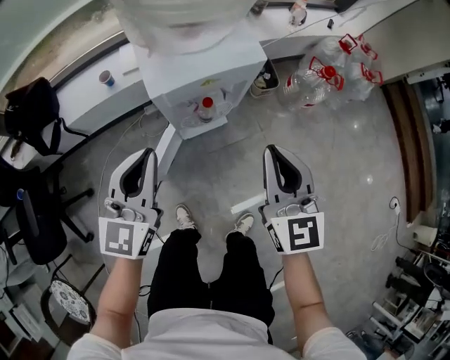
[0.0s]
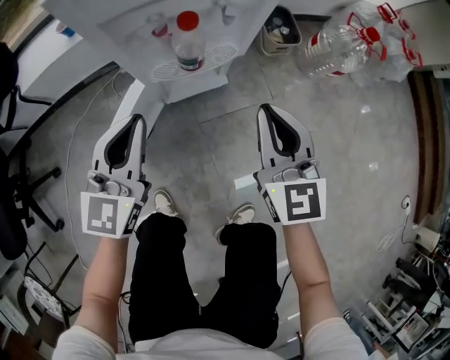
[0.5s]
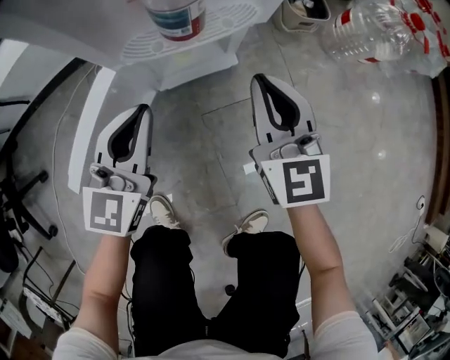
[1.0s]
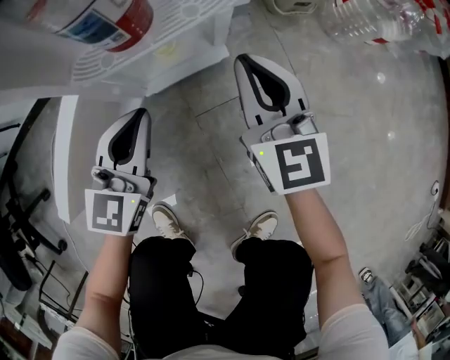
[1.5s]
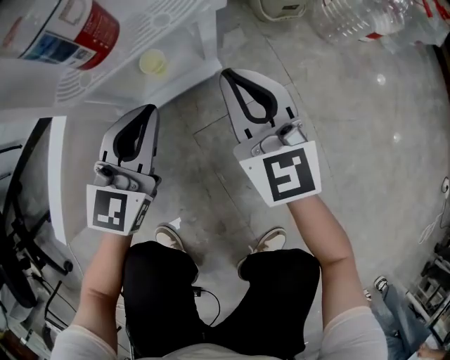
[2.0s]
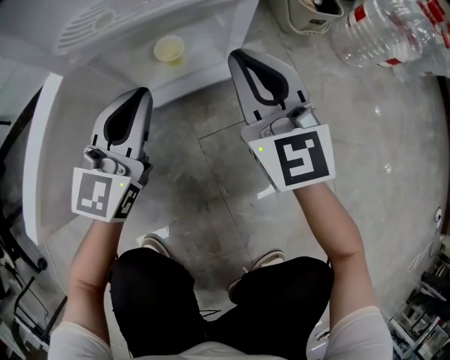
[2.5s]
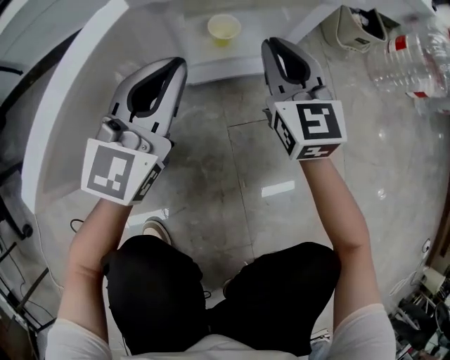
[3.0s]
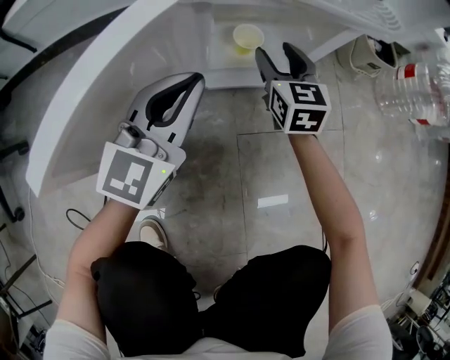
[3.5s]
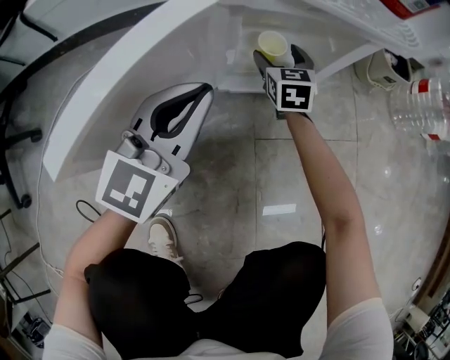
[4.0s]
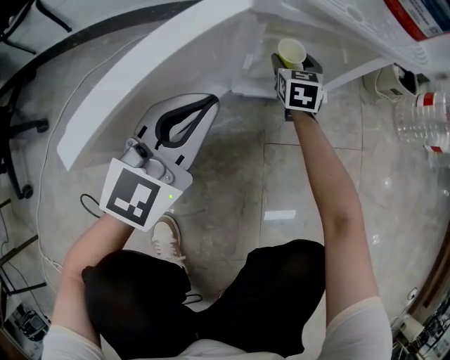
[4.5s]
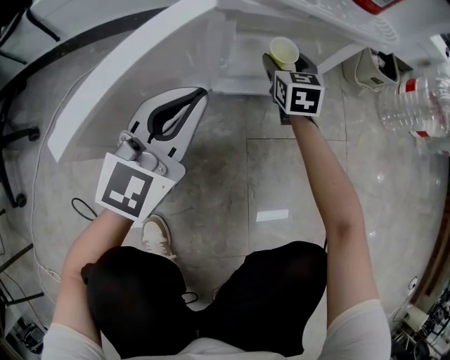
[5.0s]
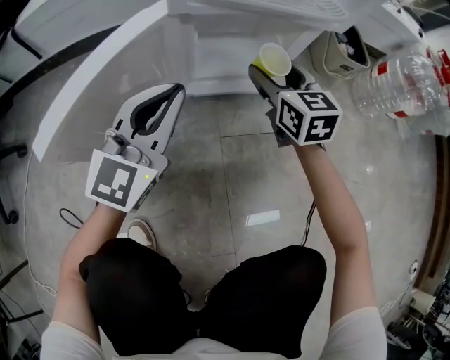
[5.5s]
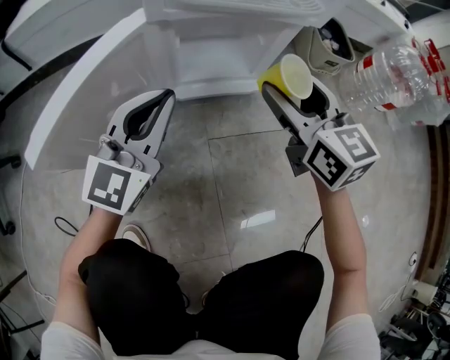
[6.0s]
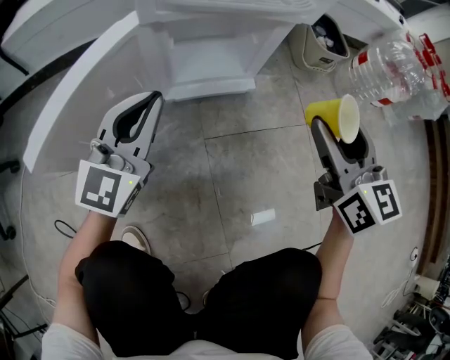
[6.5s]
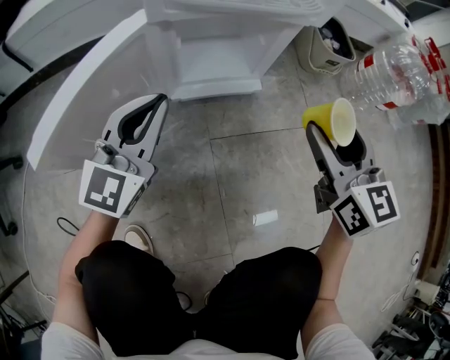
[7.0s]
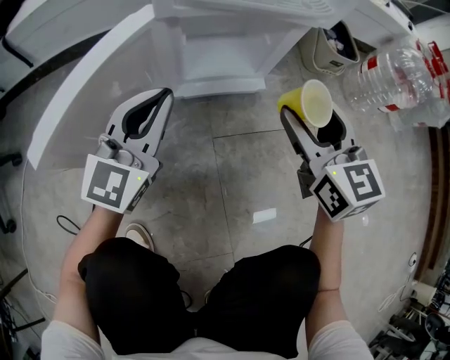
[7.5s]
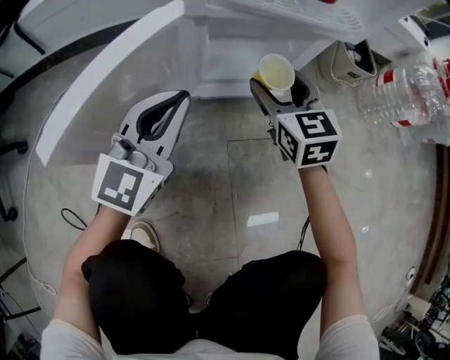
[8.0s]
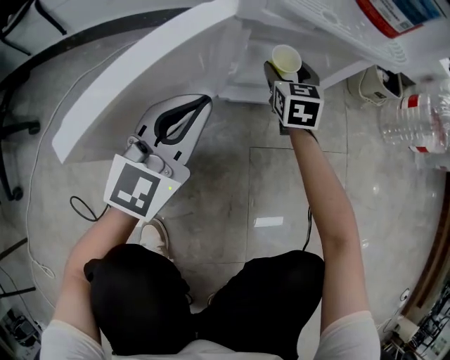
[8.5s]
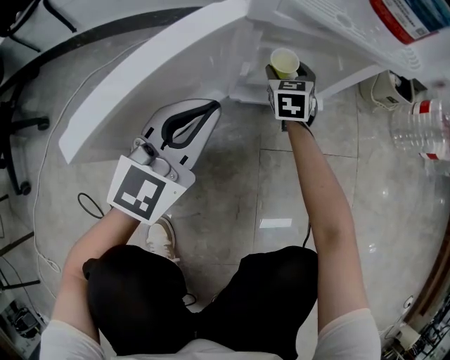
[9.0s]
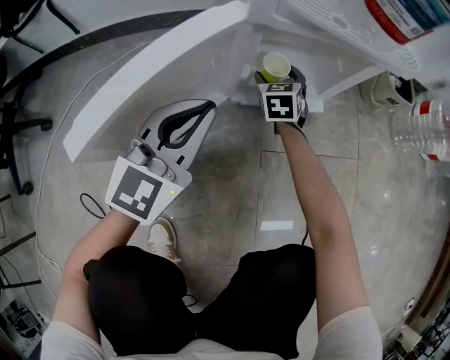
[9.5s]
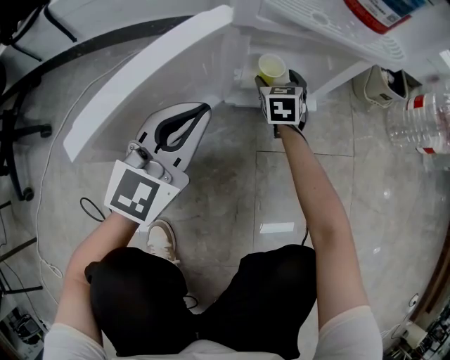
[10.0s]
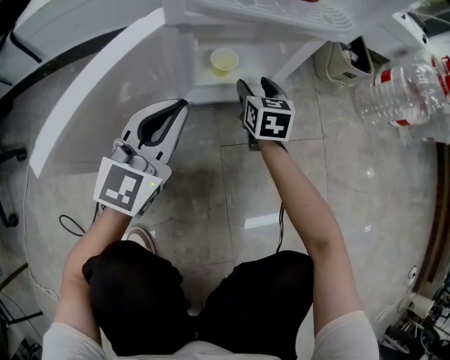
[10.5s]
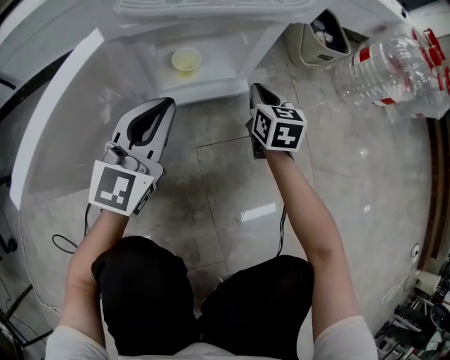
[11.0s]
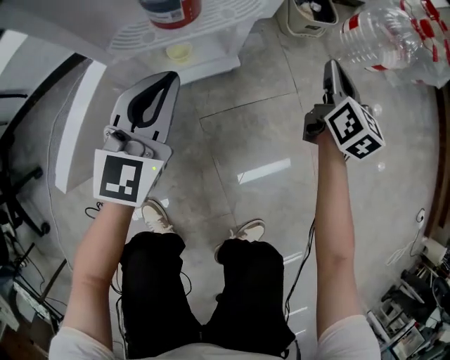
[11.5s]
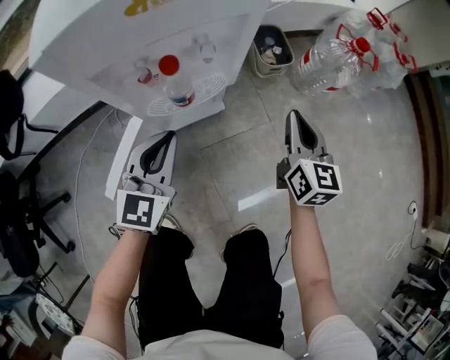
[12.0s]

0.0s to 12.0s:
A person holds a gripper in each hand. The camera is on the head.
0.0s to 2.0s: The two grippers go about 50 cm downward.
2.0s to 4.0s: The right gripper goes some 30 cm downward, to the left and forward, and opens up. The left gripper is displaced to the left by roughly 15 cm.
4.0s to 6.0s: The right gripper heads upward, backward and to the right, covering roughly 30 cm. The left gripper moves roughly 5 cm.
6.0s to 8.0s: The right gripper is displaced downward and to the left by roughly 10 cm.
8.0s to 10.0s: The right gripper heads downward and forward, covering some 20 cm.
10.0s to 12.0s: The left gripper shifts approximately 30 cm upward and to the right. Meanwhile the right gripper heads upward and to the right, covering roughly 50 cm, rotates about 40 degrees, and closes its fingers.

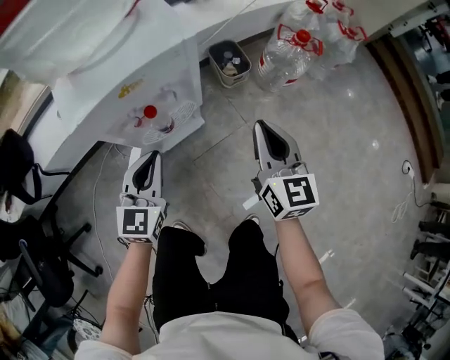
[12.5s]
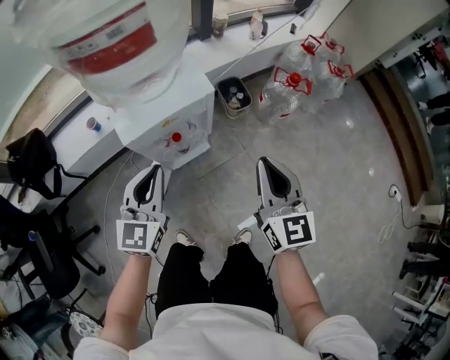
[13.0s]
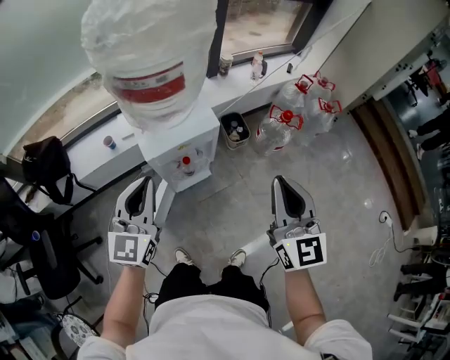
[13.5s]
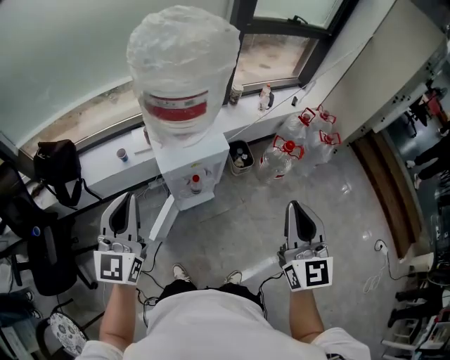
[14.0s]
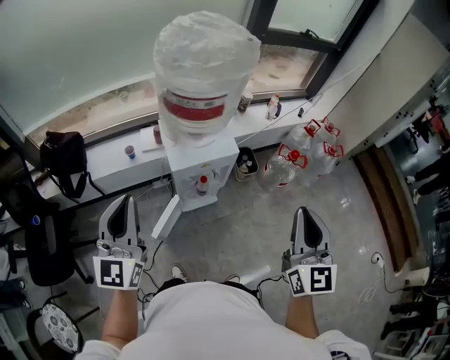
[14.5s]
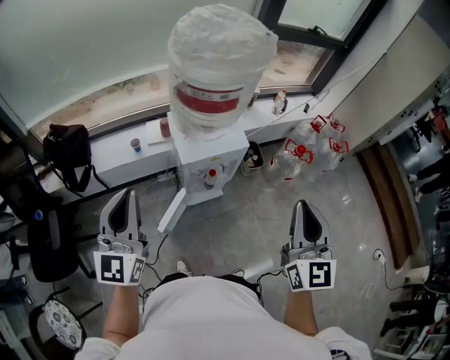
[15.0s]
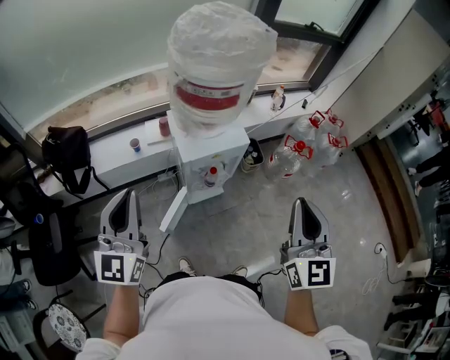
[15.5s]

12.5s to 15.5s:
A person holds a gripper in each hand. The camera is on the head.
12.5s to 14.0s: The two grippers go some 40 cm upward. The left gripper turns by about 20 degrees.
14.0s to 15.5s: The two grippers go approximately 5 cm to the left.

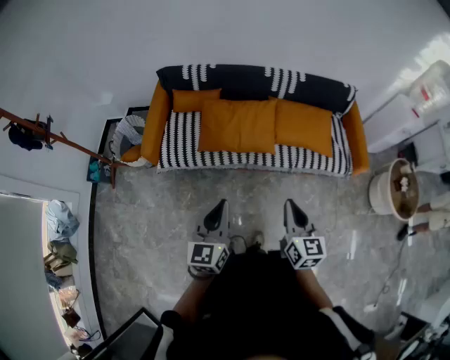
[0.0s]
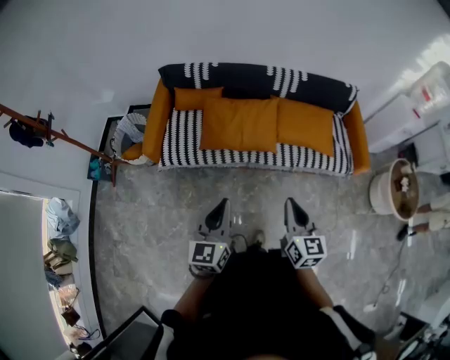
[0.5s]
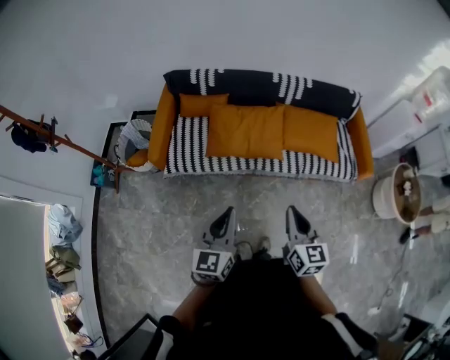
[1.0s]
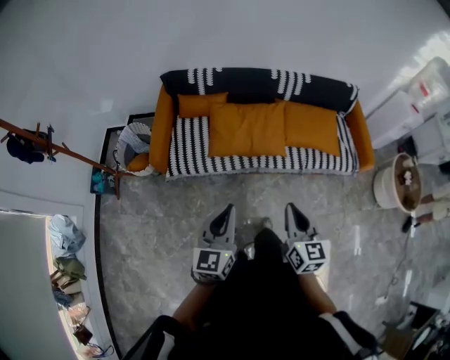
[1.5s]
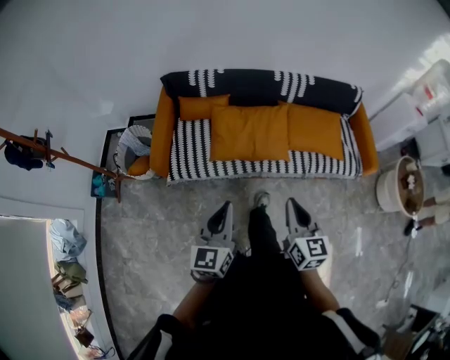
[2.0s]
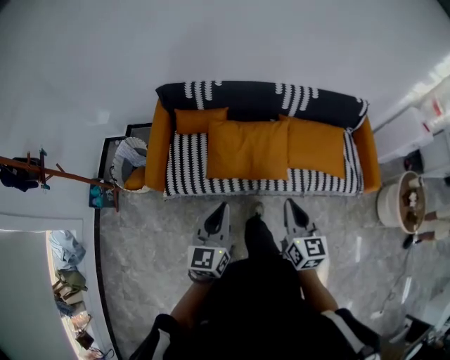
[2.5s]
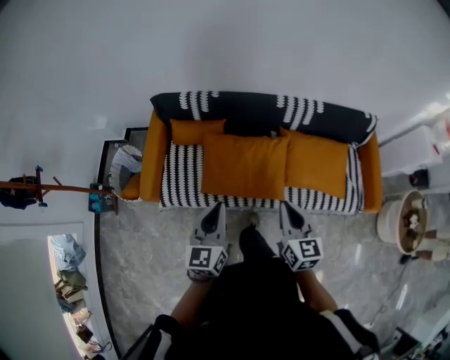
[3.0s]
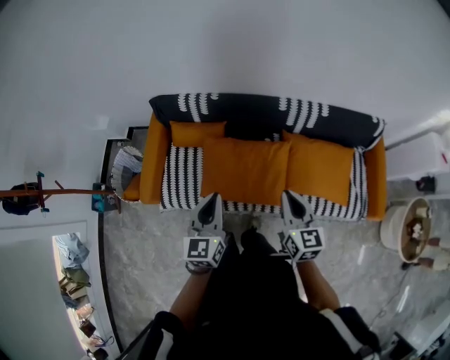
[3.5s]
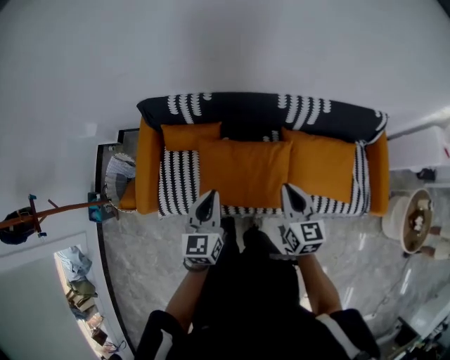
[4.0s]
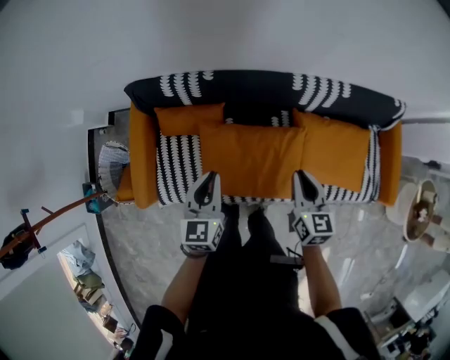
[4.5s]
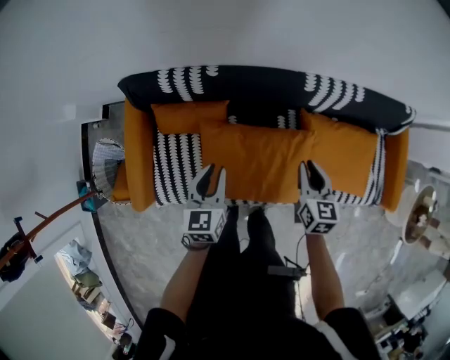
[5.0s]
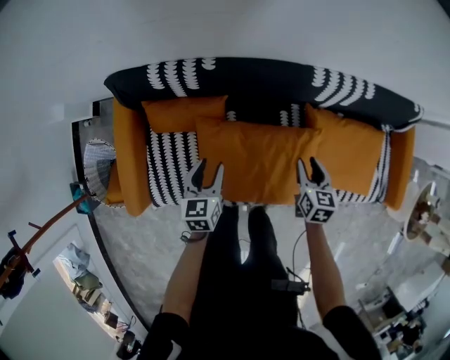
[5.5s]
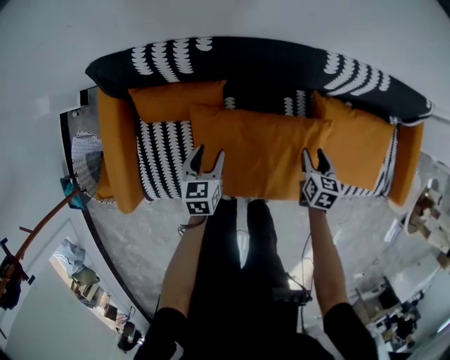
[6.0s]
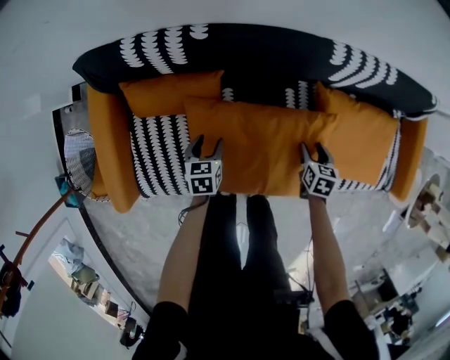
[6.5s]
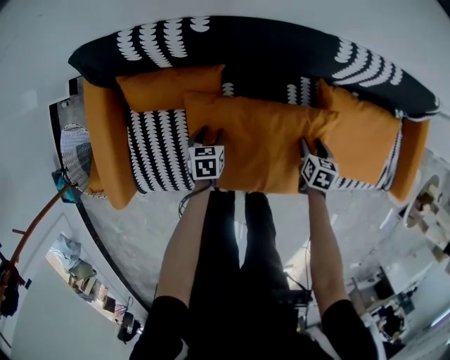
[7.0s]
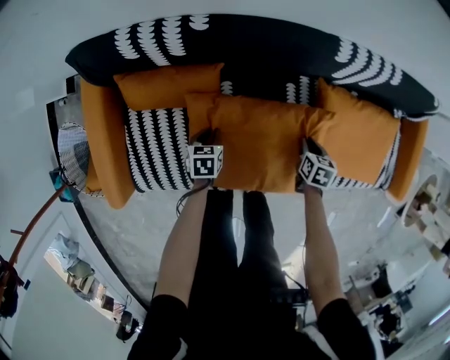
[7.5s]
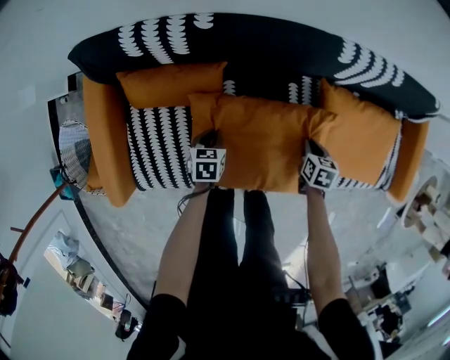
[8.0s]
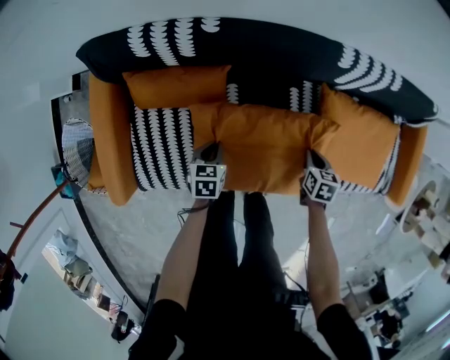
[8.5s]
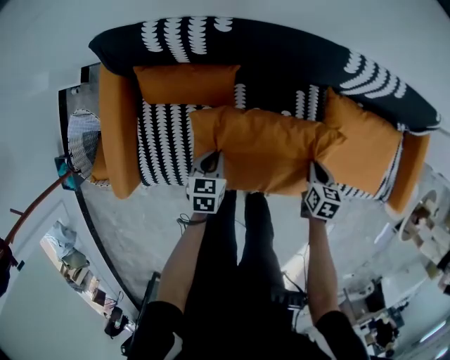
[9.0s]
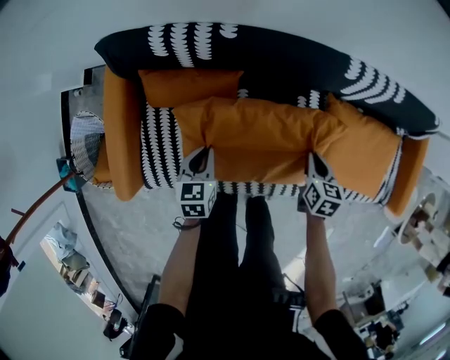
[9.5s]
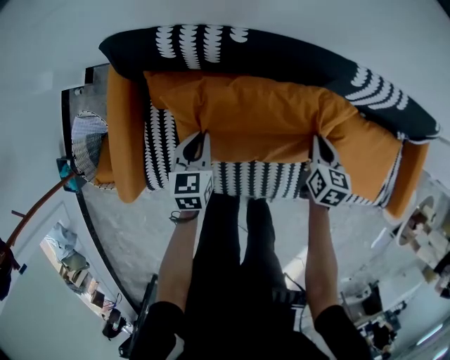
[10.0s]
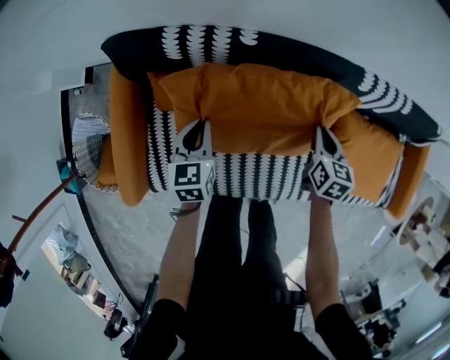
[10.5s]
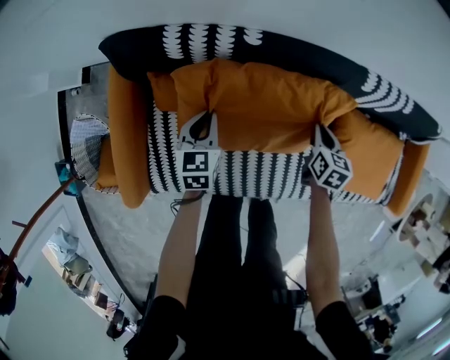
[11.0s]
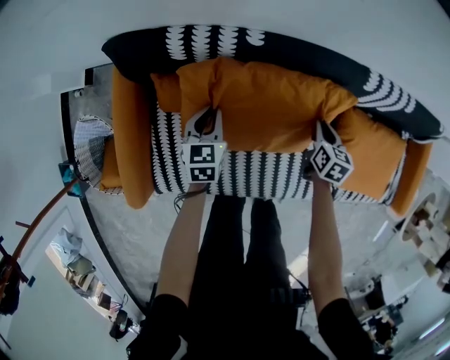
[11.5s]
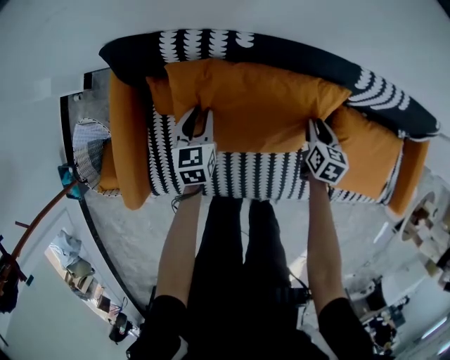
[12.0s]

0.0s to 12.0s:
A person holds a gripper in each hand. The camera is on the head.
0.0s to 2.0s: Both grippers travel together to the left and forward, approximately 10 cm.
2.0s to 4.0s: The pair of grippers is taken forward, about 40 cm.
4.0s to 6.0s: Both grippers travel together downward, roughly 35 cm. The right gripper tips its fingers downward by about 30 degrees, and opens up, while the left gripper changes its angle by roughly 30 degrees, and opens its fingers.
6.0s to 8.0s: The right gripper is displaced downward by approximately 5 cm, and closes up; the left gripper travels downward by approximately 15 cm, and closes its fingers.
8.0s to 10.0s: The right gripper goes approximately 15 cm upward, to the left and forward, while the left gripper moves upward and to the left, approximately 20 cm, and turns by approximately 20 degrees.
10.0s to 12.0s: The right gripper heads downward, covering roughly 5 cm, and opens, while the left gripper heads forward, covering roughly 5 cm, and opens its fingers.
